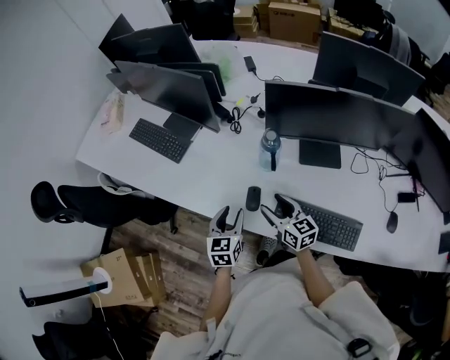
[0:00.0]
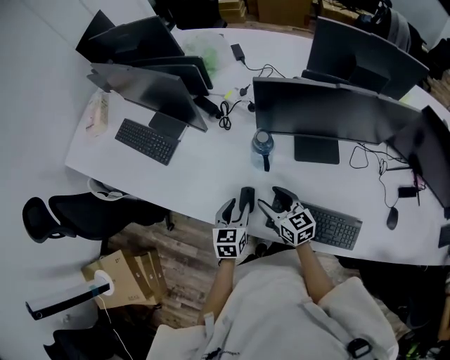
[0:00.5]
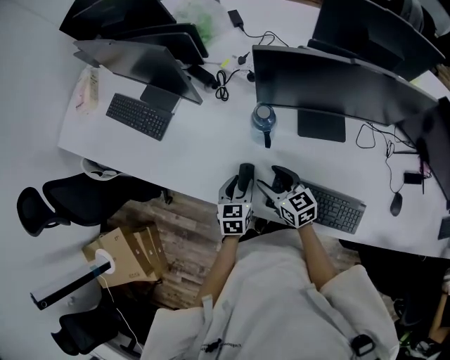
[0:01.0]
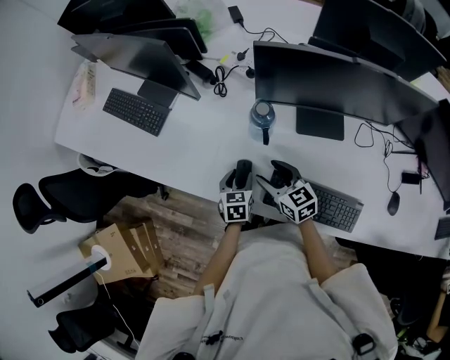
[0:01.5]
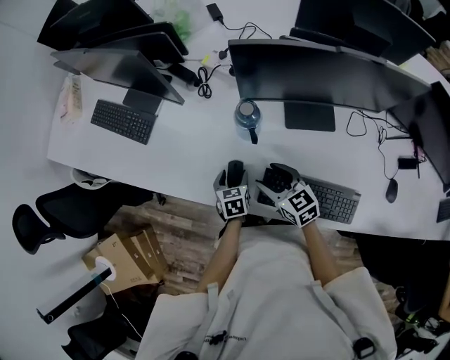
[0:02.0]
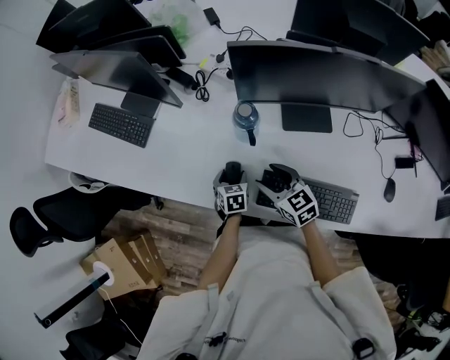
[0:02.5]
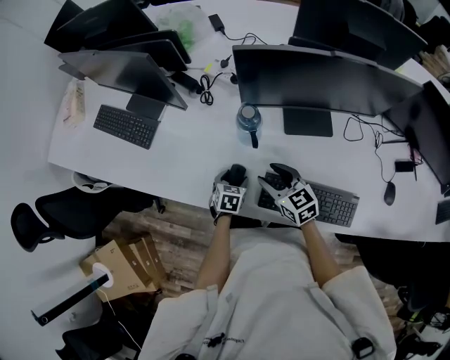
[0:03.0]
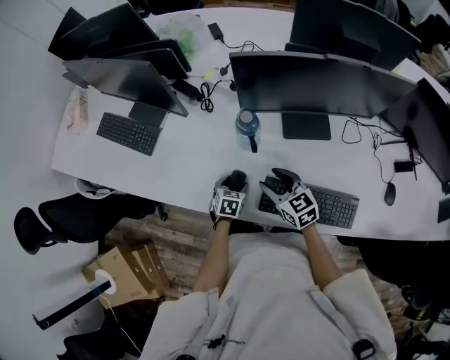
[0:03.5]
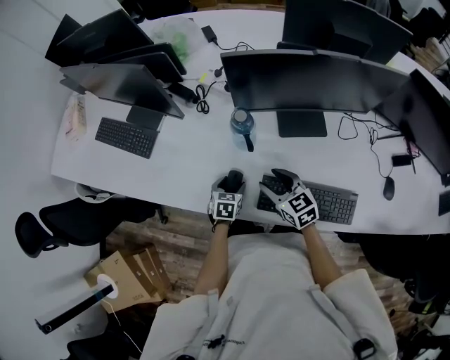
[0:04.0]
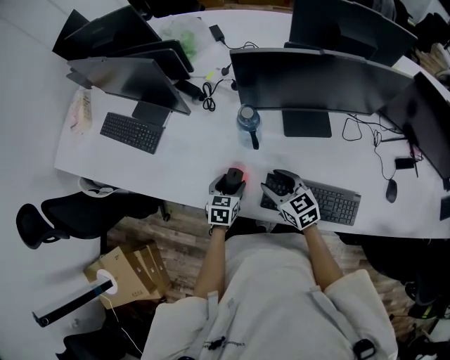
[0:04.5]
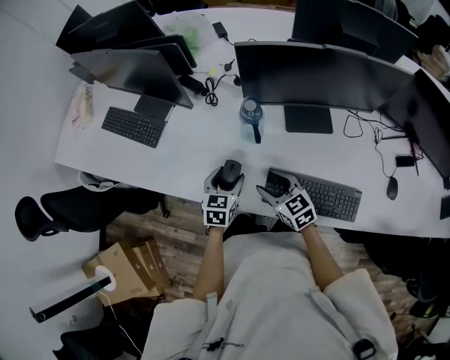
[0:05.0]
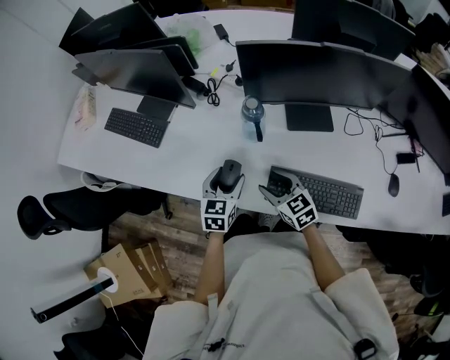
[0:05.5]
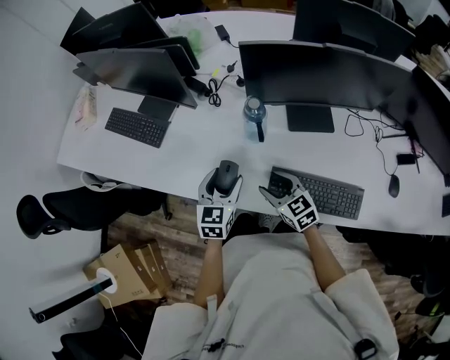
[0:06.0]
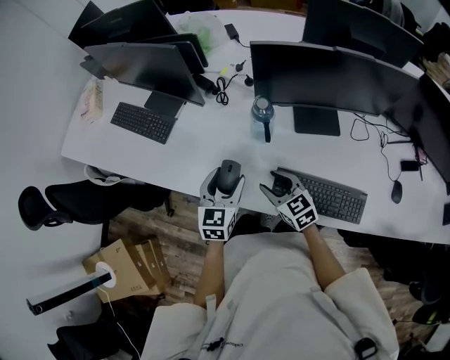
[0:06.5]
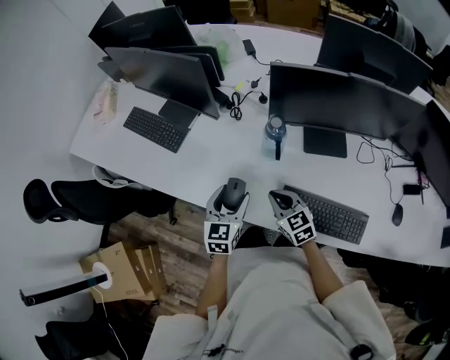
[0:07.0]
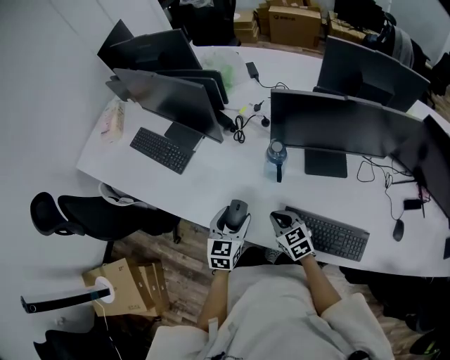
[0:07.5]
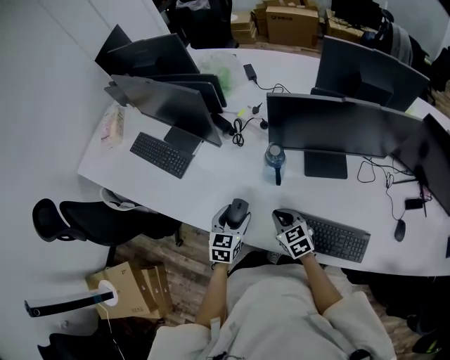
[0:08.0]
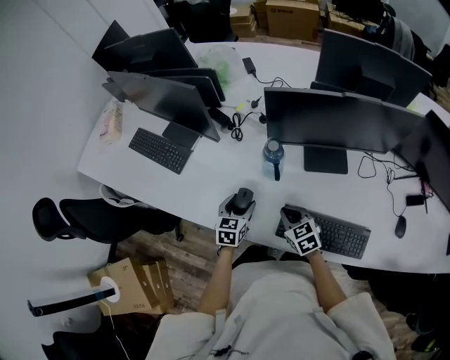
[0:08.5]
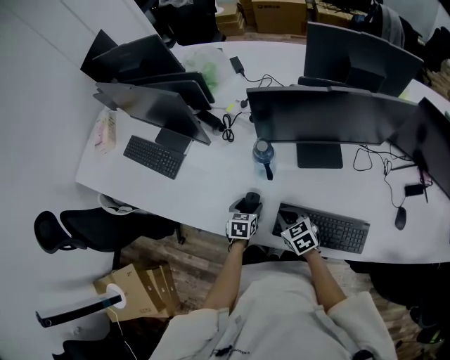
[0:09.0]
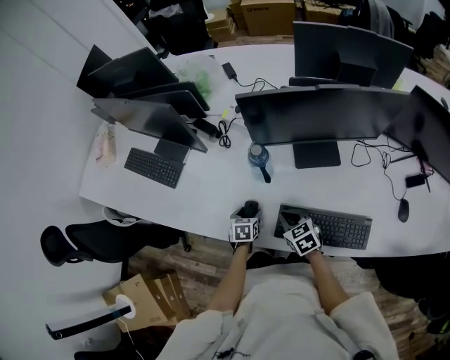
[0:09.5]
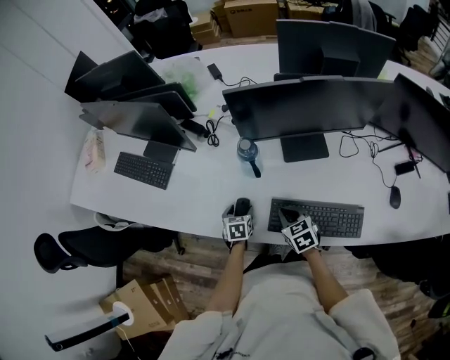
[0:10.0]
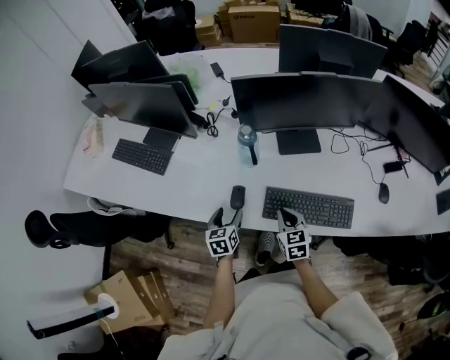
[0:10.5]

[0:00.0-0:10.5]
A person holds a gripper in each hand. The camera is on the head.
0.0 to 2.0 s: The left gripper moves downward, to the right and forward, some 20 cm, and rotates about 20 degrees. The right gripper changes place by about 5 cm.
2.0 to 4.0 s: The left gripper rotates roughly 20 degrees.
4.0 to 6.5 s: The right gripper shifts roughly 5 cm to the left; the left gripper goes approximately 20 cm upward, and changes its angle by roughly 30 degrees.
6.5 to 8.5 s: The right gripper shifts by some 5 cm, and closes; the left gripper heads downward and forward, covering about 10 cm.
8.5 to 10.5 s: Both grippers move backward, roughly 10 cm. The right gripper turns by approximately 20 degrees; the left gripper moves some 10 cm downward and comes back.

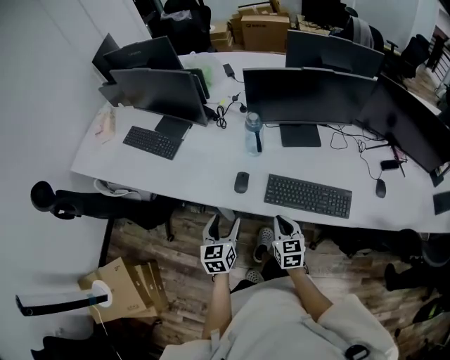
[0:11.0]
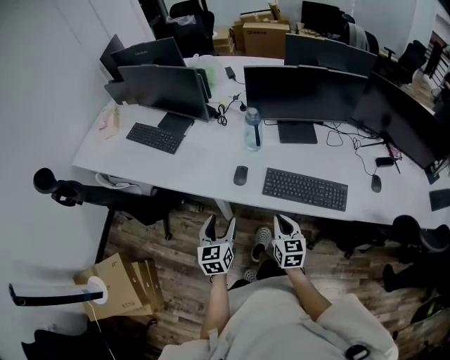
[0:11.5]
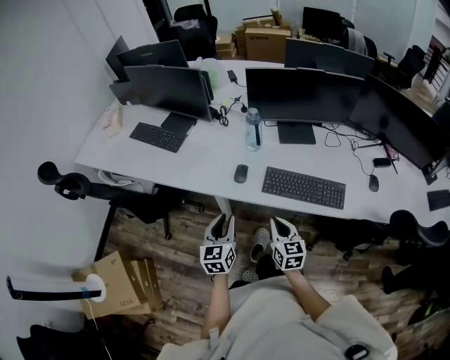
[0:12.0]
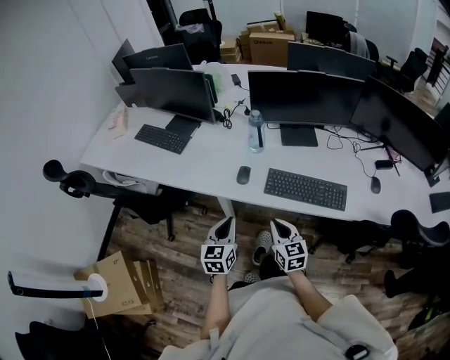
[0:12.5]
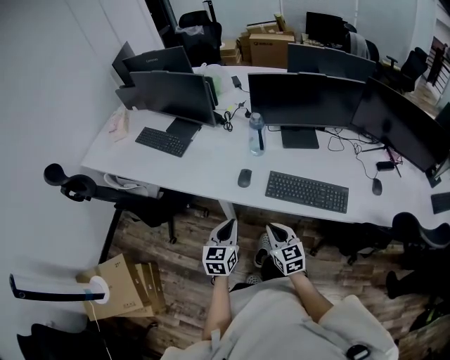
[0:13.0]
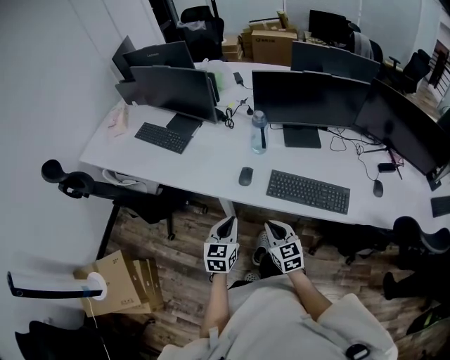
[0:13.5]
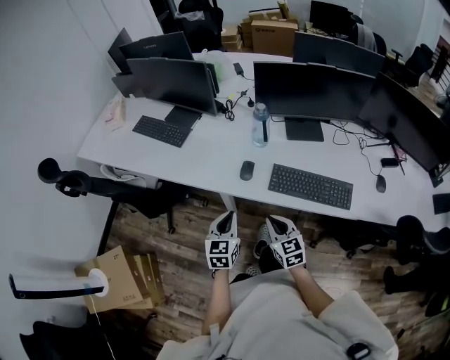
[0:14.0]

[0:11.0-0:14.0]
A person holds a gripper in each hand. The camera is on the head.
11.0 to 12.5 s: The two grippers go about 10 cm backward. The left gripper closes its fingers.
12.5 to 14.0 s: There are only small adjustments of the grippers.

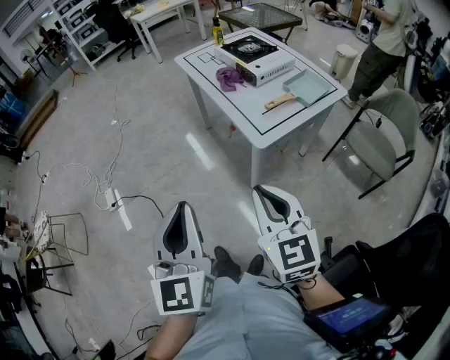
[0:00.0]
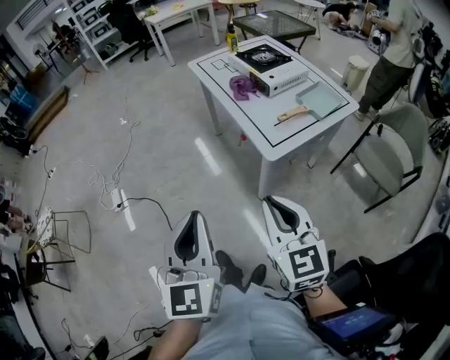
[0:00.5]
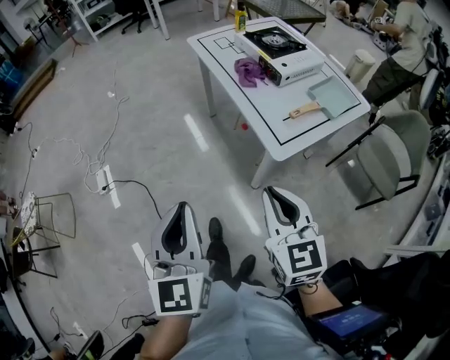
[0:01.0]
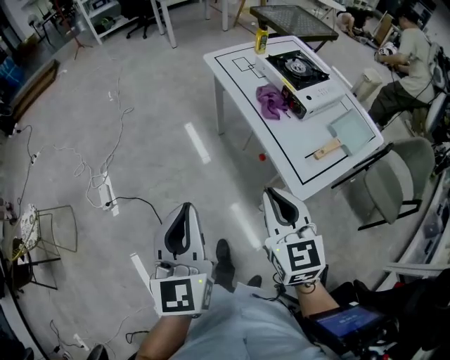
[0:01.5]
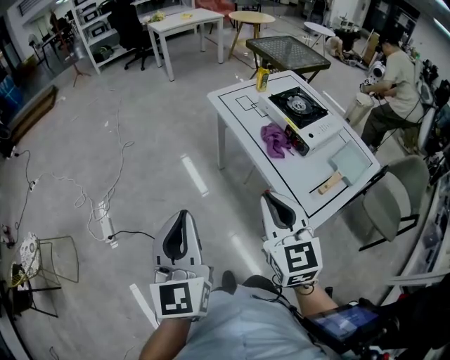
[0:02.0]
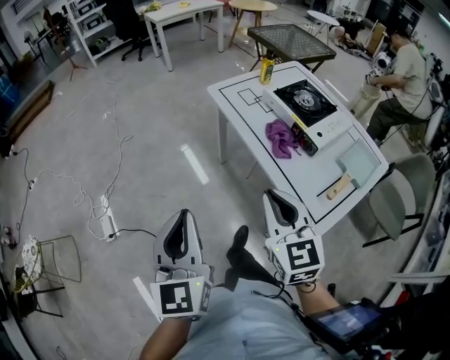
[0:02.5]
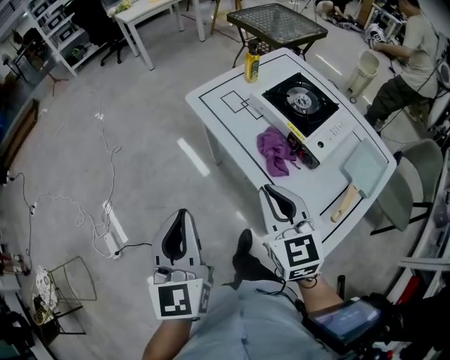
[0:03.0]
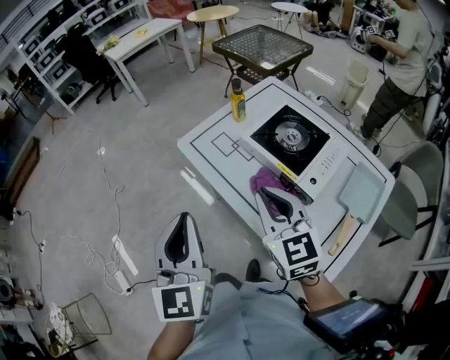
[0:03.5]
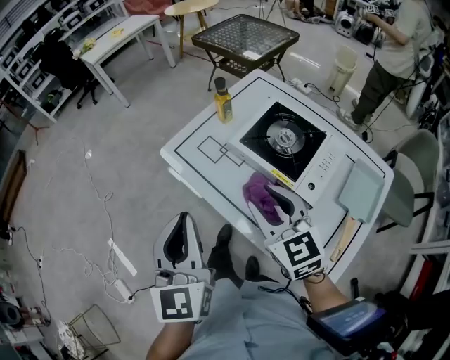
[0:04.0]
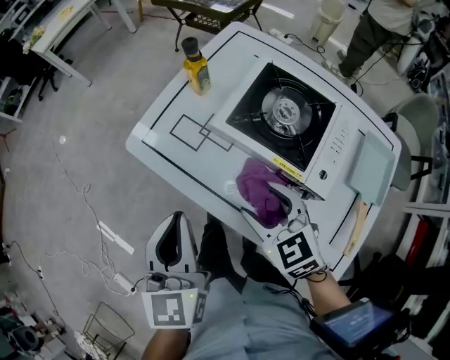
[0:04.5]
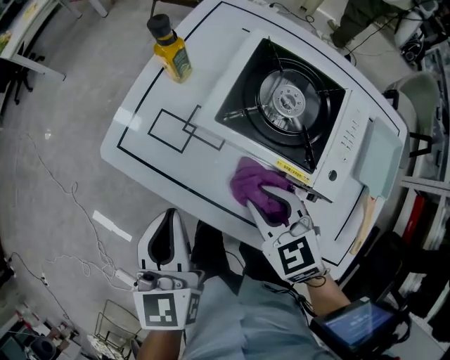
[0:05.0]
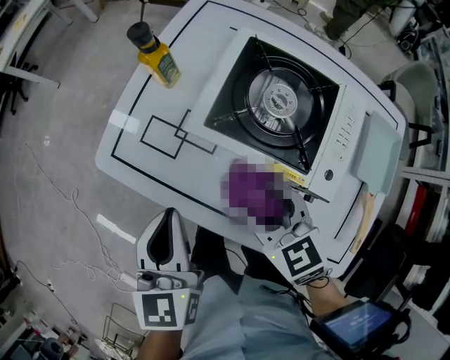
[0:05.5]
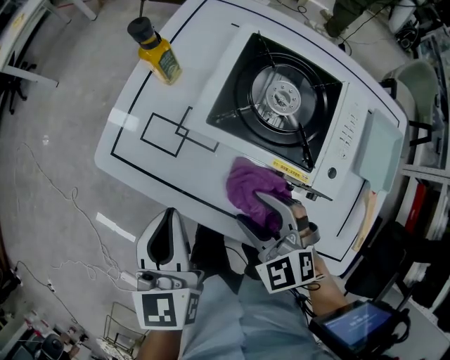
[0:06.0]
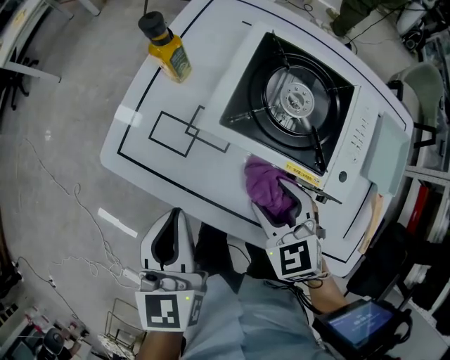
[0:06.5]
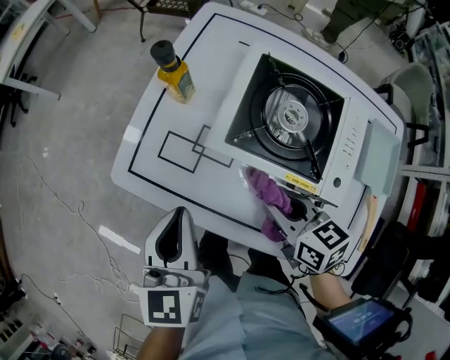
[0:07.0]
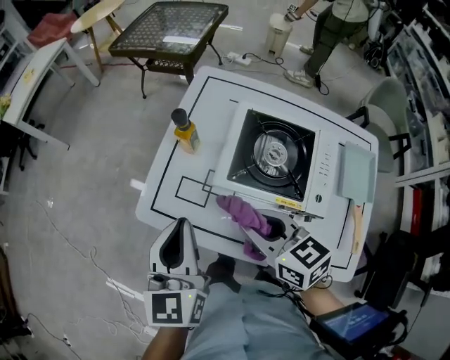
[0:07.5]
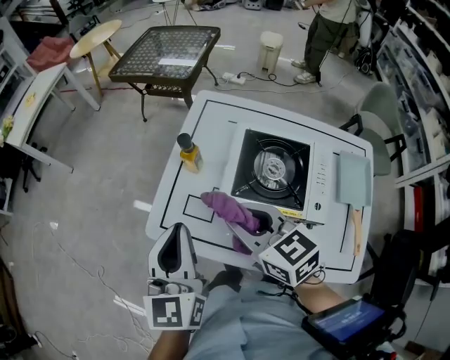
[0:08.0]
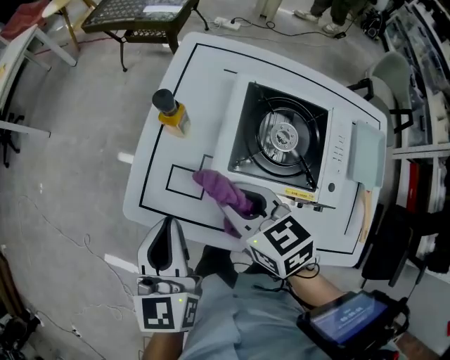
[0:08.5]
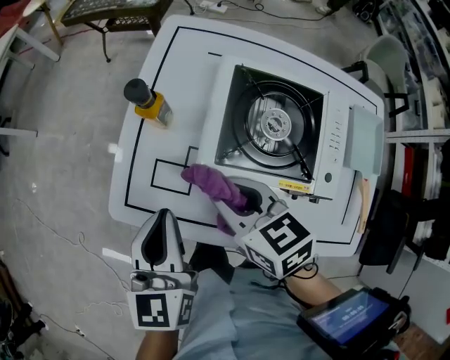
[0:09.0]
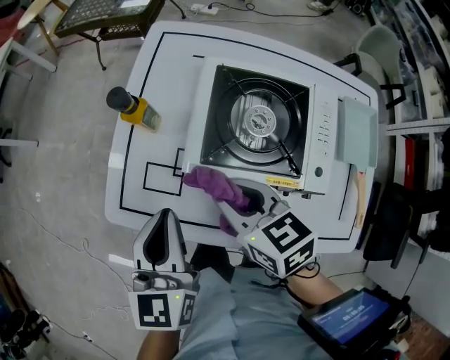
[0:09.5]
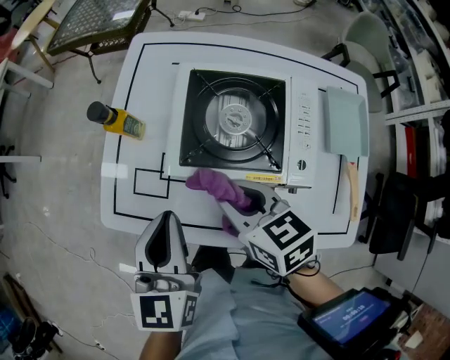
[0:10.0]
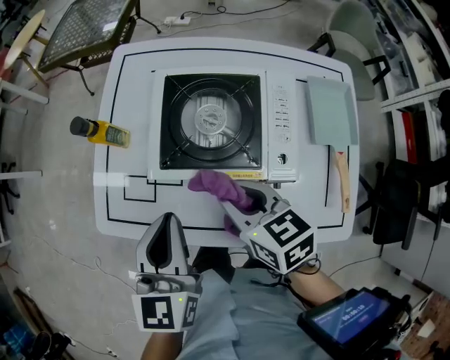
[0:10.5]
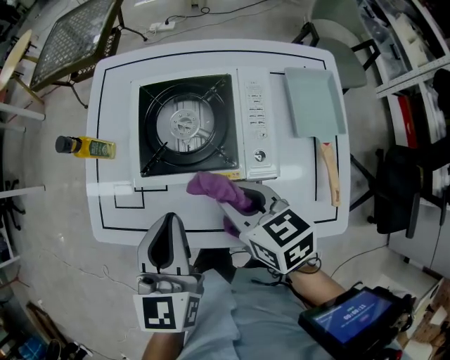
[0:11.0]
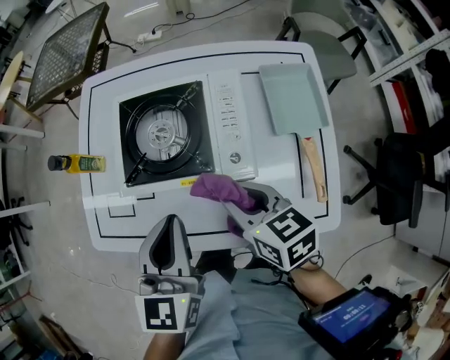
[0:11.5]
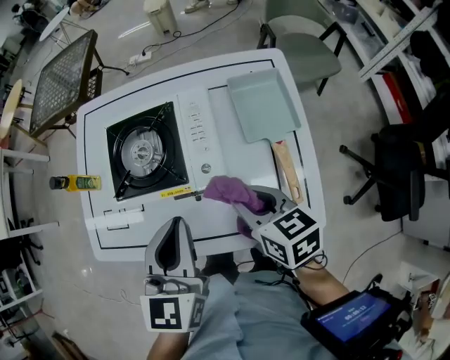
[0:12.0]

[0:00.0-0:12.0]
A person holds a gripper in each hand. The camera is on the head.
0.0 to 2.0 s: The right gripper moves forward, approximately 30 cm, while the left gripper travels forward and to the left by roughly 35 cm.
2.0 to 4.0 s: The two grippers go roughly 35 cm forward.
4.0 to 6.0 s: The right gripper shifts about 20 cm downward, swivels some 30 degrees, and opens its fingers. Meanwhile the left gripper moves downward and forward, some 25 cm, and rotates some 30 degrees.
6.0 to 8.0 s: The two grippers go some 20 cm upward and forward. The right gripper turns by approximately 40 degrees, and closes up.
8.0 to 10.0 s: The two grippers go roughly 15 cm downward and to the right. The right gripper rotates about 20 degrees.
10.0 to 12.0 s: The right gripper heads to the right and backward, covering approximately 25 cm. The left gripper is displaced to the right by some 25 cm.

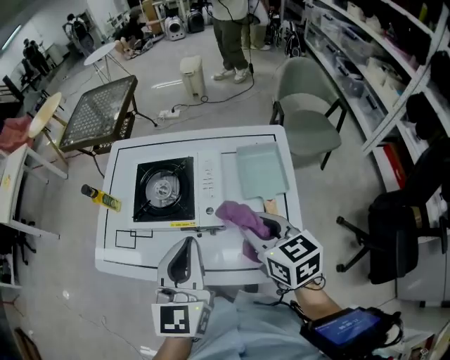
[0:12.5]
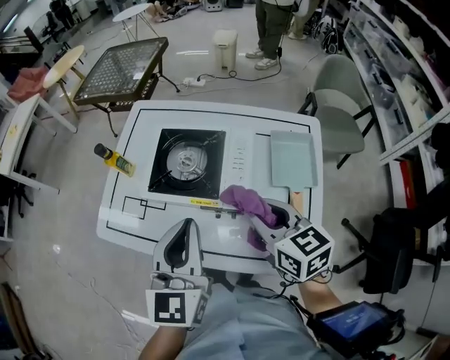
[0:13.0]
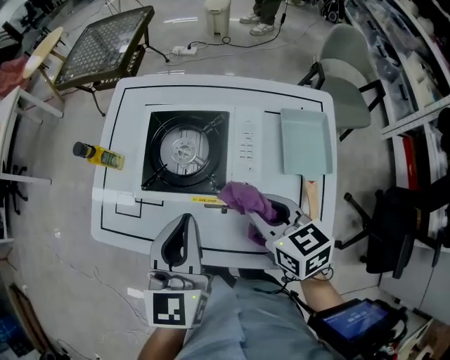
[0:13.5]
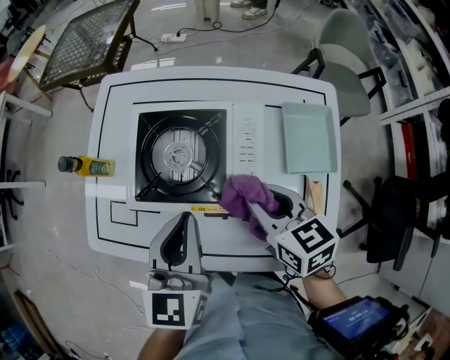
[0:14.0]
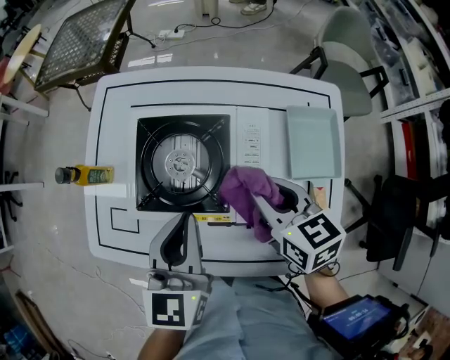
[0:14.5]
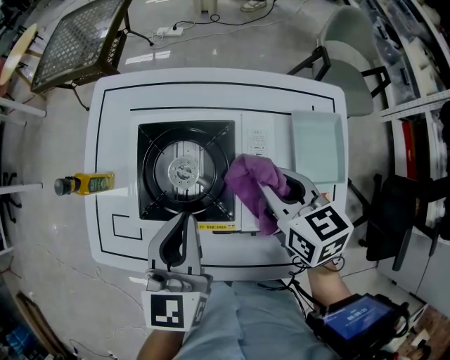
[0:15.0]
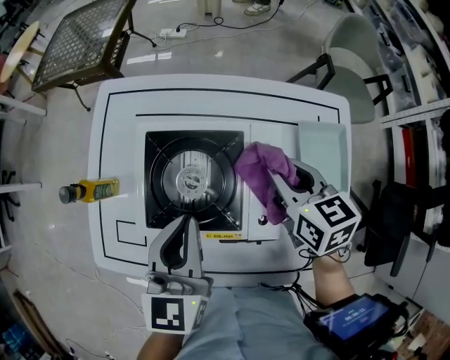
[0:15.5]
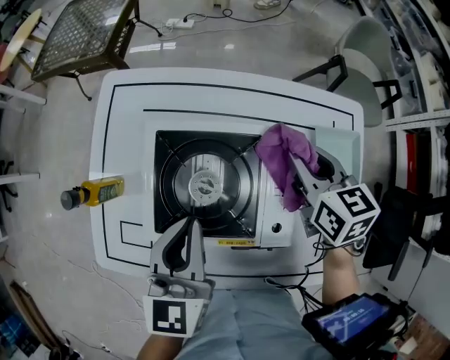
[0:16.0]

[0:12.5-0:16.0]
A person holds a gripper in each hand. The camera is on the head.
12.5 to 14.5 s: The left gripper shifts about 20 cm forward, downward and to the left. Meanwhile the right gripper travels forward and downward by approximately 20 cm.
14.5 to 16.0 s: The right gripper shifts some 15 cm forward; the left gripper goes approximately 5 cm forward.
